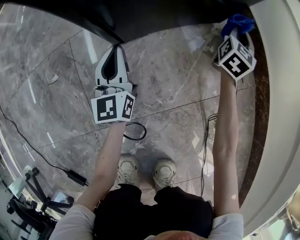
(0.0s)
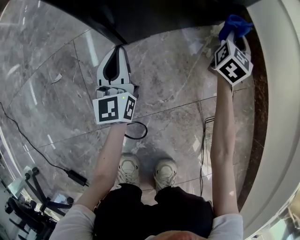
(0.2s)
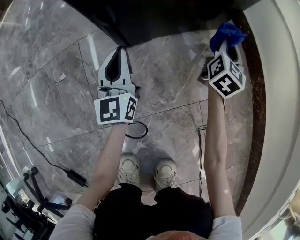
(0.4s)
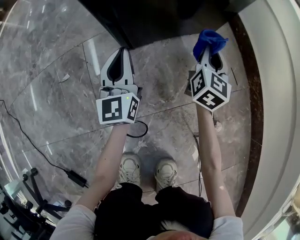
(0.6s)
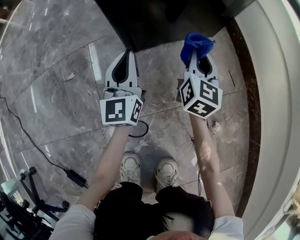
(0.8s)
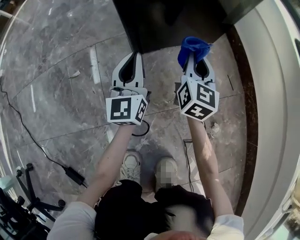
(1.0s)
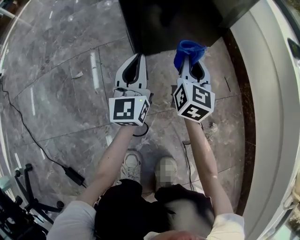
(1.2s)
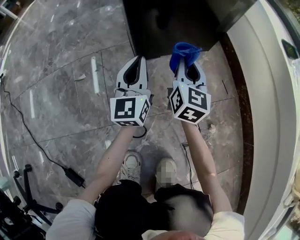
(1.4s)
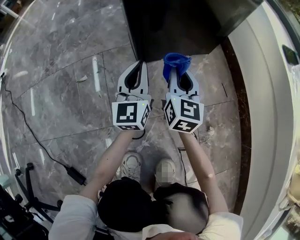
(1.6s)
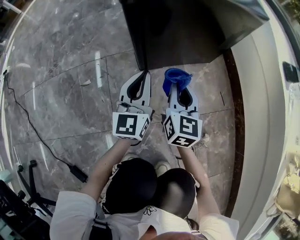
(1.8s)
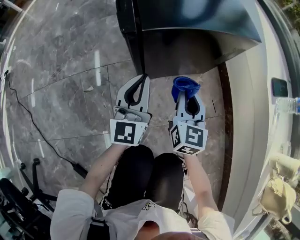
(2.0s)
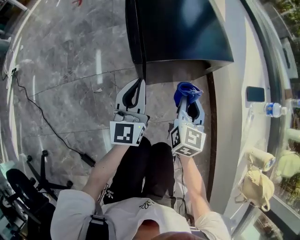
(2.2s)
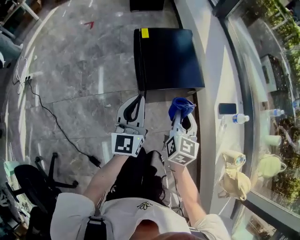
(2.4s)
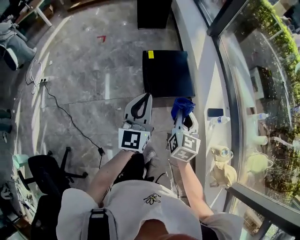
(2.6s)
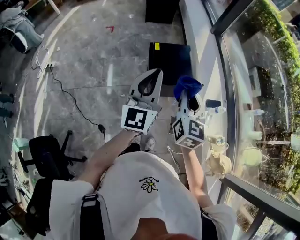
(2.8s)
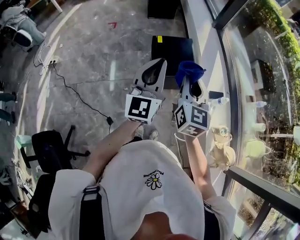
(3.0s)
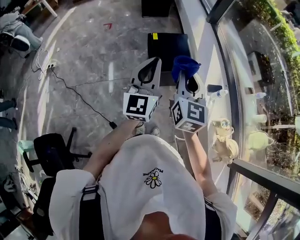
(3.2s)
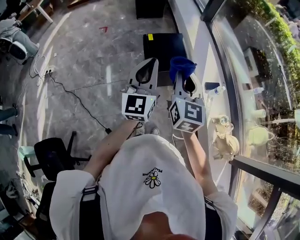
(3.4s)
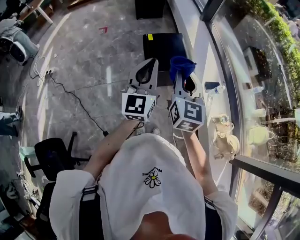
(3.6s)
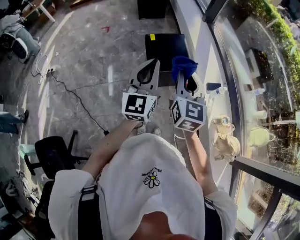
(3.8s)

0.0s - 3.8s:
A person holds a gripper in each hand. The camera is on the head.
0.0s - 1.2s: The right gripper travels to the left, backward and upward by some 30 cm, and rotates about 30 degrees, while the left gripper goes about 15 cm upward and backward.
1.2s - 2.6s: Both grippers travel together upward, roughly 70 cm.
2.6s - 3.8s: The grippers both shift upward and backward by roughly 20 cm.

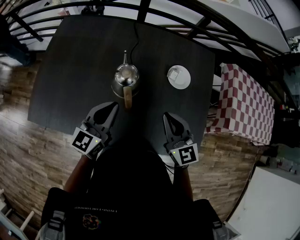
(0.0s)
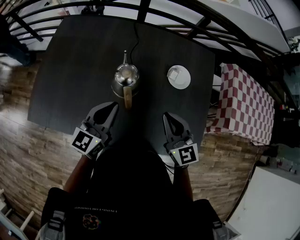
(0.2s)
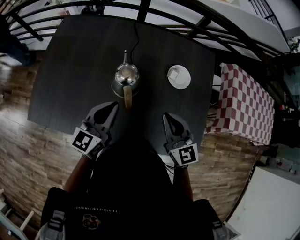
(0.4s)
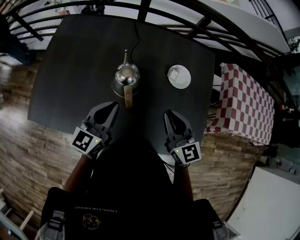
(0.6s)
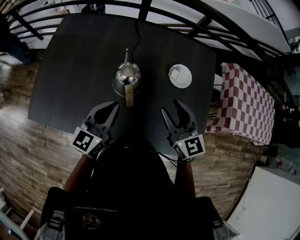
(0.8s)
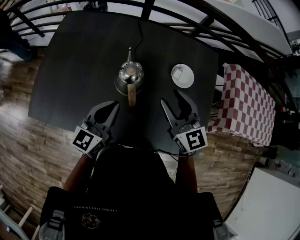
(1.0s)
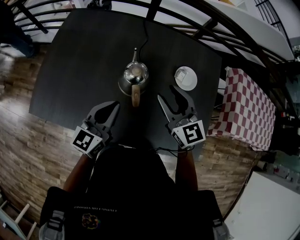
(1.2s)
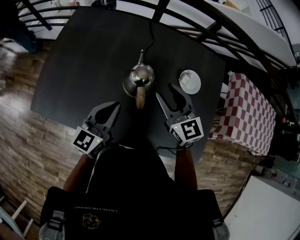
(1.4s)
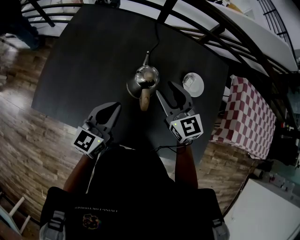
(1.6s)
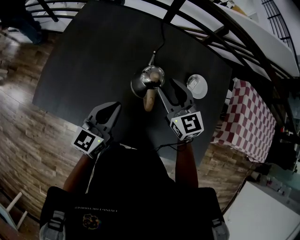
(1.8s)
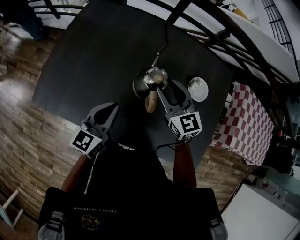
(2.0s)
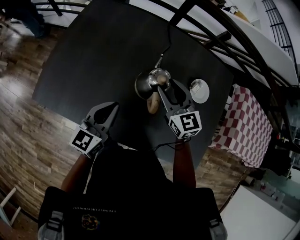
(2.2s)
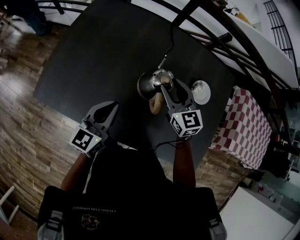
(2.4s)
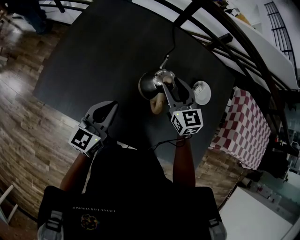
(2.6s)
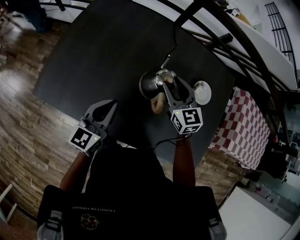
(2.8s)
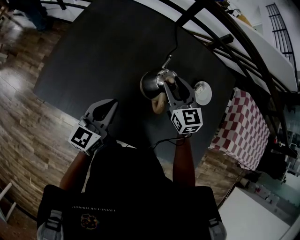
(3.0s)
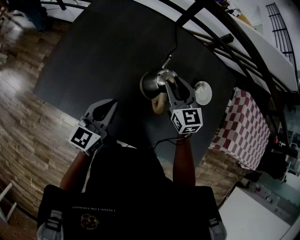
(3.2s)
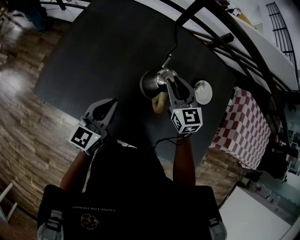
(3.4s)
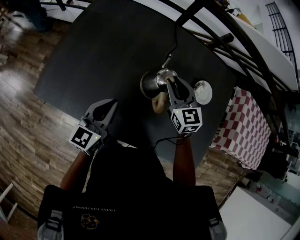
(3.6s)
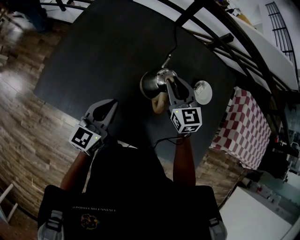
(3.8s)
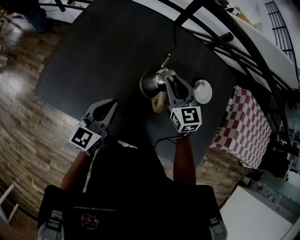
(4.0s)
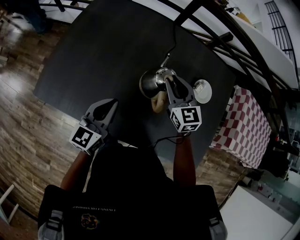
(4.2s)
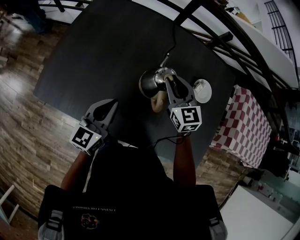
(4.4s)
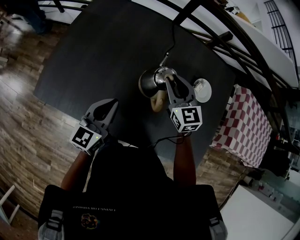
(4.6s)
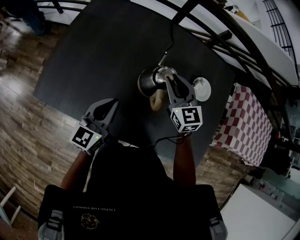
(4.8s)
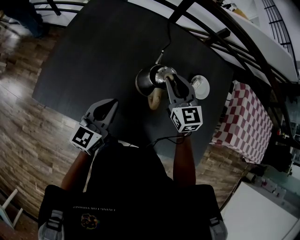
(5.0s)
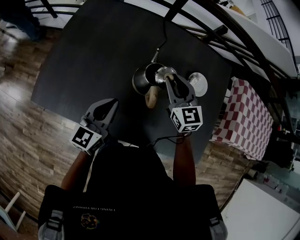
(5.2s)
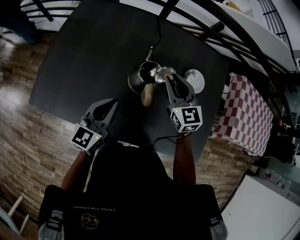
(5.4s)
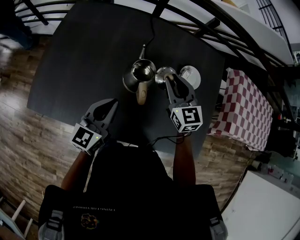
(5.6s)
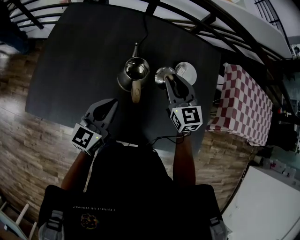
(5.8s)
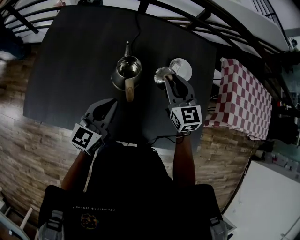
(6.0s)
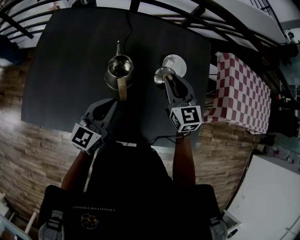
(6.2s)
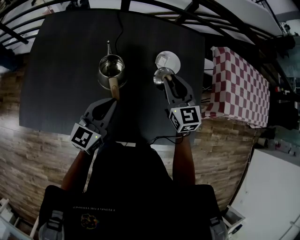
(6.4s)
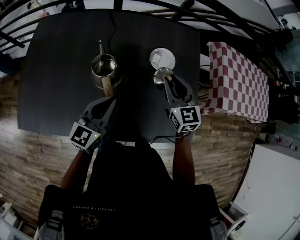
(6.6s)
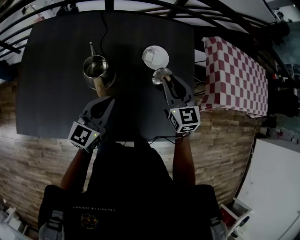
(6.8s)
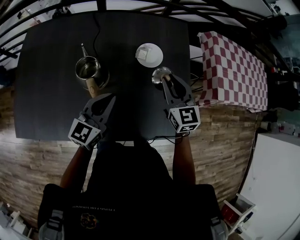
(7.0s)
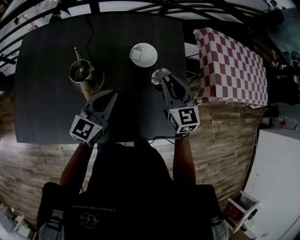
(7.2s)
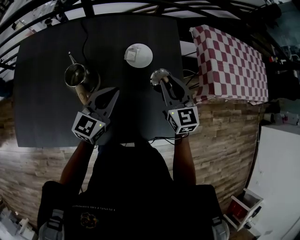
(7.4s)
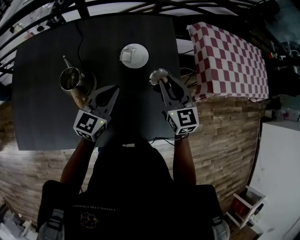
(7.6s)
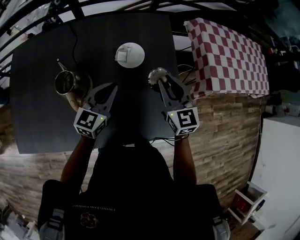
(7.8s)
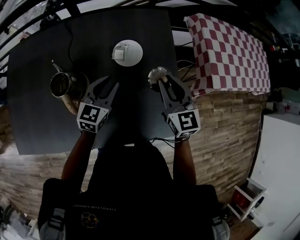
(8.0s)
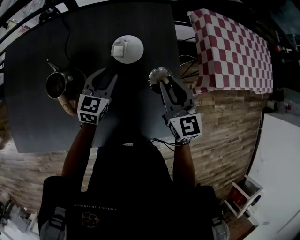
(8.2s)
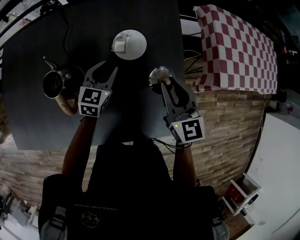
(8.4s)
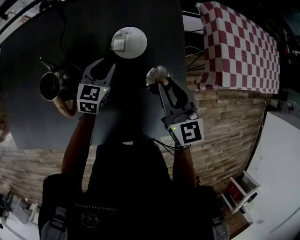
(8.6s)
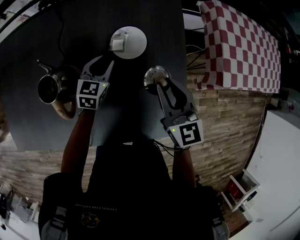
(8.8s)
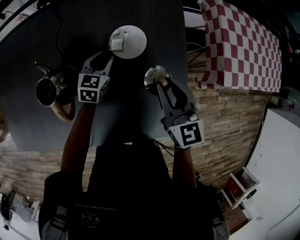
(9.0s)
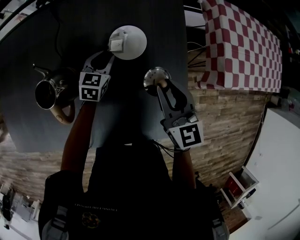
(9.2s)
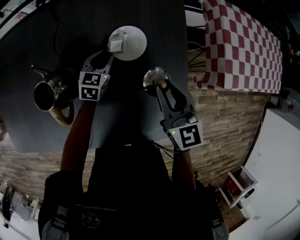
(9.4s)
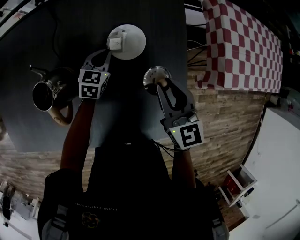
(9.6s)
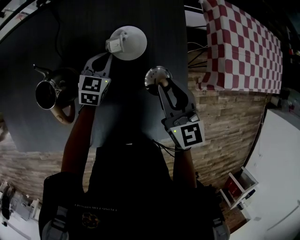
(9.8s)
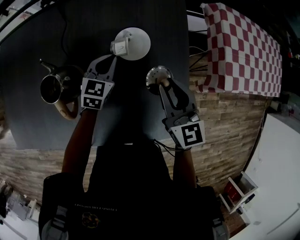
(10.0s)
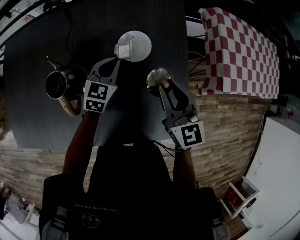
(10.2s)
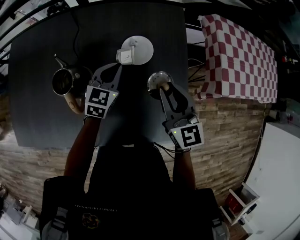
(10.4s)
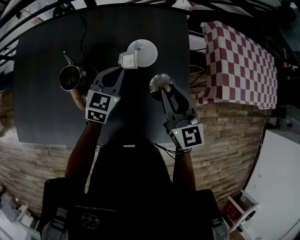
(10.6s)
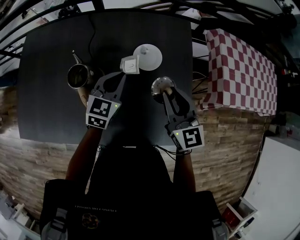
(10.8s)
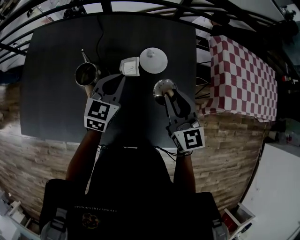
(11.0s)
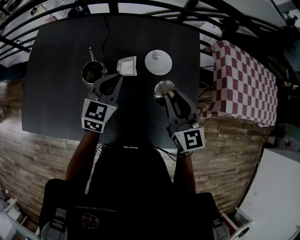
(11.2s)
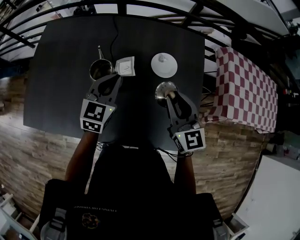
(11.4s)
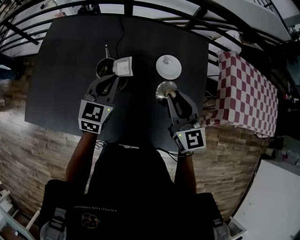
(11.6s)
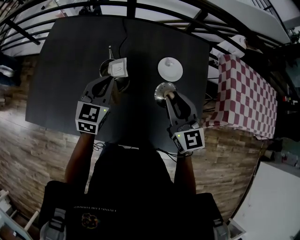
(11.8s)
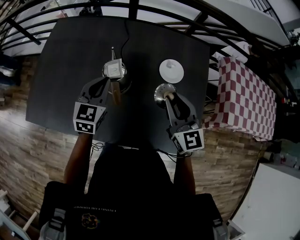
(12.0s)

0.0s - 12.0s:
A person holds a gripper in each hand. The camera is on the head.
0.0s - 1.6s: The left gripper moves to the left, approximately 5 cm, while the right gripper goes about 15 cm forward and to the left, and opens up.
1.6s - 3.0s: The left gripper is displaced to the left by approximately 10 cm, while the right gripper ends up approximately 10 cm from where it was.
3.0s - 4.4s: Neither gripper changes place.
4.4s - 6.0s: The grippers both shift to the right by about 15 cm.
6.0s - 7.6s: The left gripper travels to the right and forward by roughly 25 cm, while the right gripper heads to the right, covering approximately 25 cm.
7.6s - 9.0s: The left gripper heads downward and forward, covering approximately 25 cm, turns by about 30 degrees, and opens up.
9.0s - 10.4s: The right gripper moves roughly 5 cm, while the left gripper goes roughly 10 cm upward, and closes its fingers.
10.4s - 12.0s: The right gripper is displaced to the left by roughly 15 cm. Meanwhile the left gripper moves to the left and upward, roughly 25 cm.

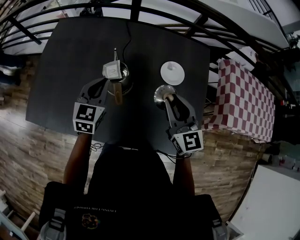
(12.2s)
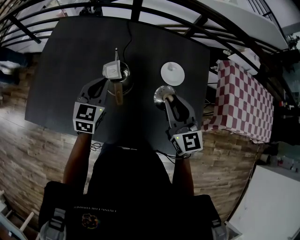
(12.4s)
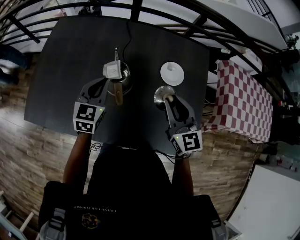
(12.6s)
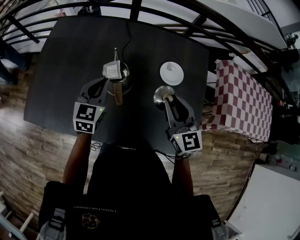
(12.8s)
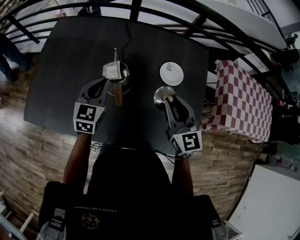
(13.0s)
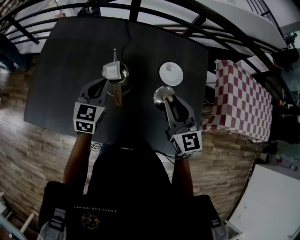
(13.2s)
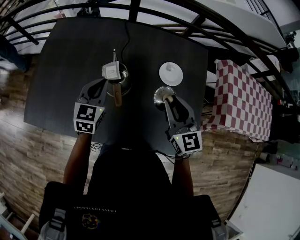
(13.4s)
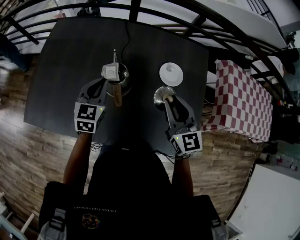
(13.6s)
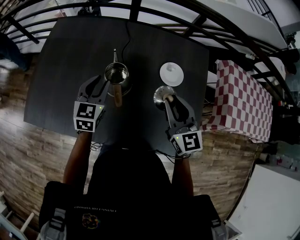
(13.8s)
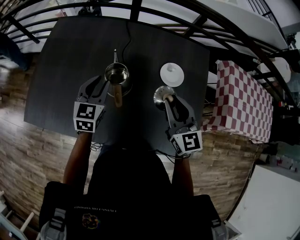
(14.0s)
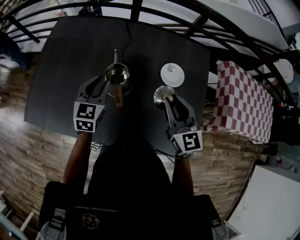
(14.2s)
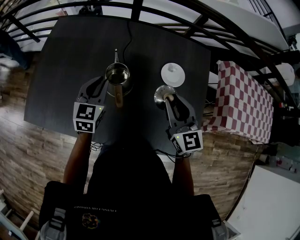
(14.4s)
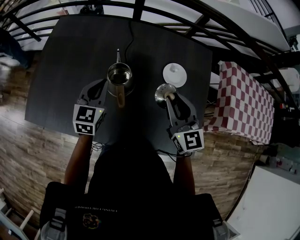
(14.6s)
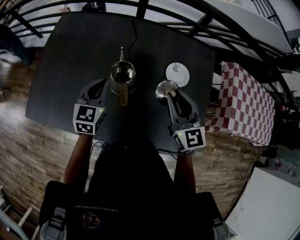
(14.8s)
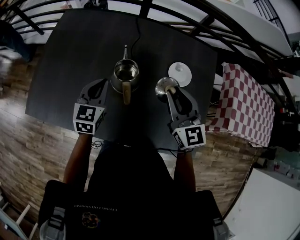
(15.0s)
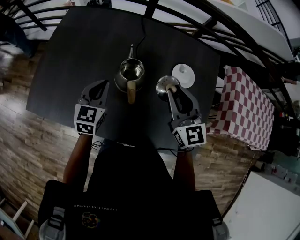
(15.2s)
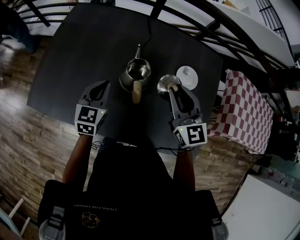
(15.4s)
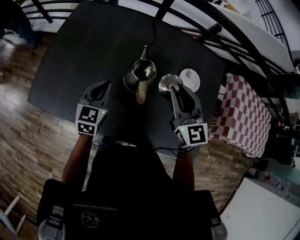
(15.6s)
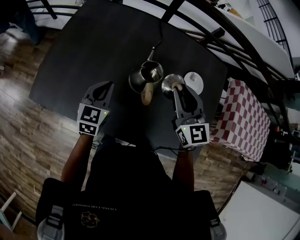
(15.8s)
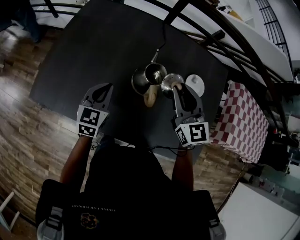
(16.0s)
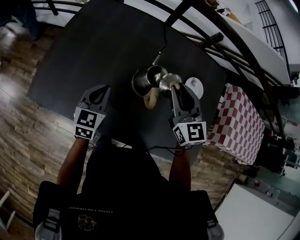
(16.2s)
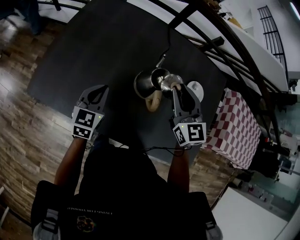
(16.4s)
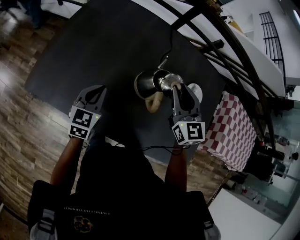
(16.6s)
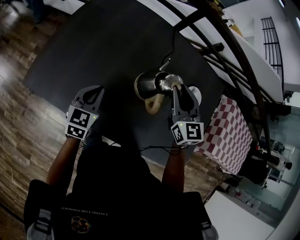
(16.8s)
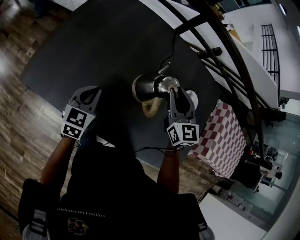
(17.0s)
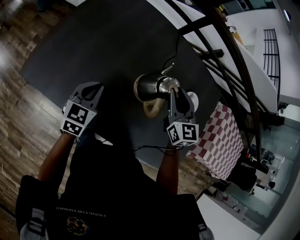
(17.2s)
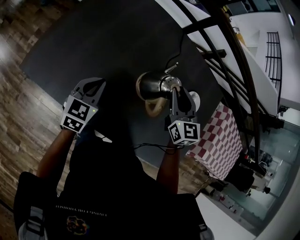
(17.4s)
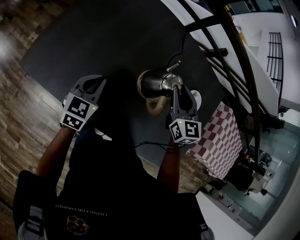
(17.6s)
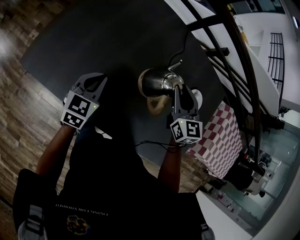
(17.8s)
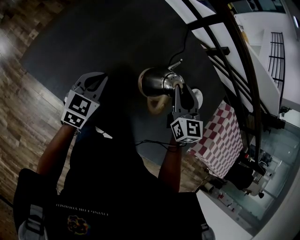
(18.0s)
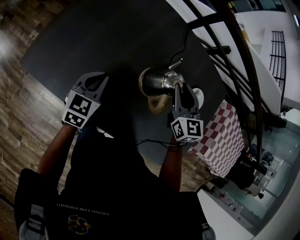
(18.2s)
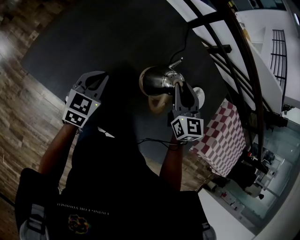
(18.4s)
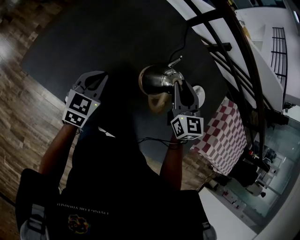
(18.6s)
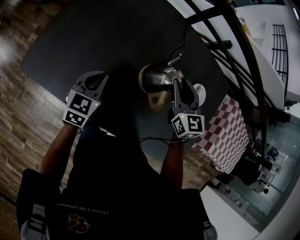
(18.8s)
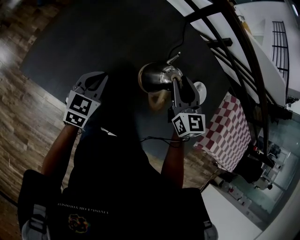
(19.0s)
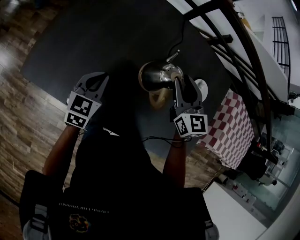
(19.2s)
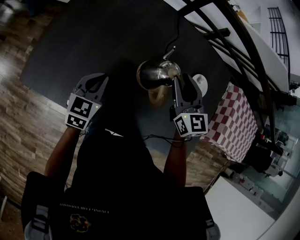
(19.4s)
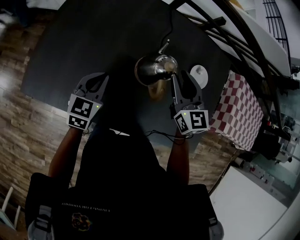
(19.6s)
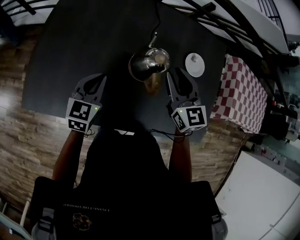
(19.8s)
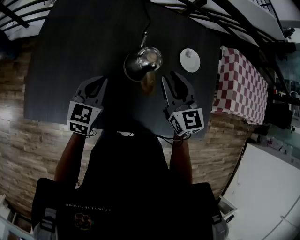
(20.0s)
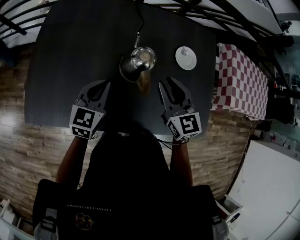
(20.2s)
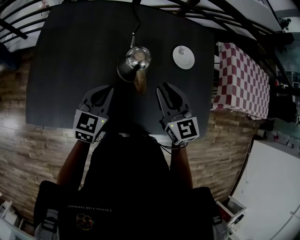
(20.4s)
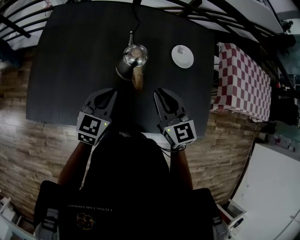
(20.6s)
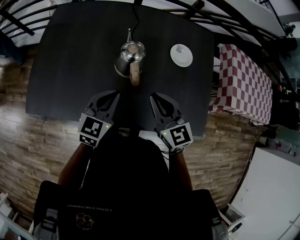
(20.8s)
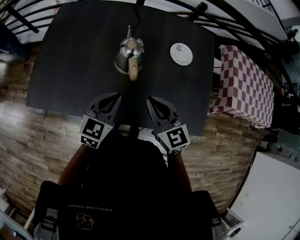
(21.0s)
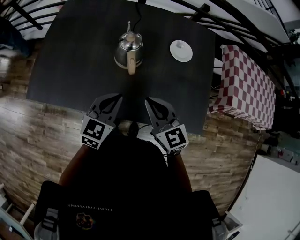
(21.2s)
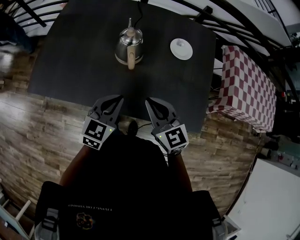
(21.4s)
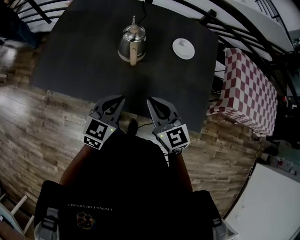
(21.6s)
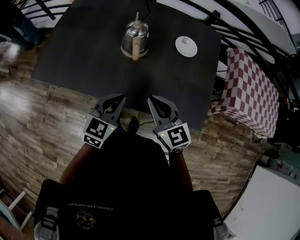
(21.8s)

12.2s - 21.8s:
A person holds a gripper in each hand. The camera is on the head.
12.2s - 13.8s: The left gripper opens its fingers.
13.8s - 15.4s: The grippers both shift to the left by some 5 cm. The left gripper closes.
15.4s - 17.0s: The right gripper travels to the left and forward by some 15 cm; the left gripper heads to the left and downward, covering about 15 cm.
17.0s - 18.6s: The grippers stay close to where they were, moving slightly.
18.6s - 20.2s: The left gripper shifts about 10 cm to the right and upward, and changes its angle by approximately 20 degrees, while the right gripper goes some 10 cm backward and to the right.
20.2s - 21.8s: The left gripper goes approximately 25 cm backward and to the right; the right gripper shifts roughly 20 cm backward, and closes.
